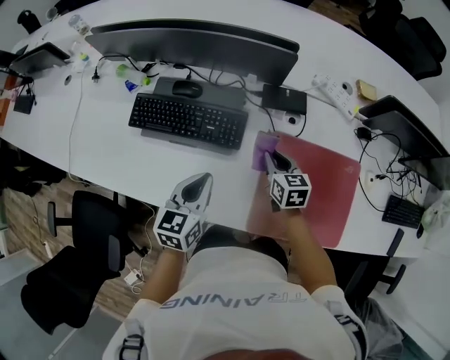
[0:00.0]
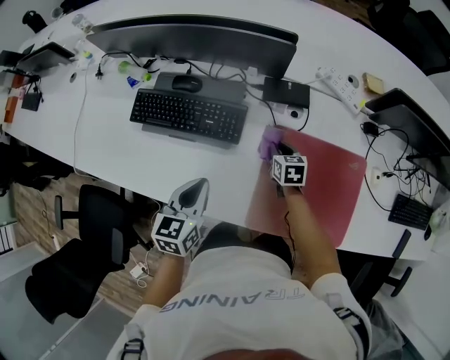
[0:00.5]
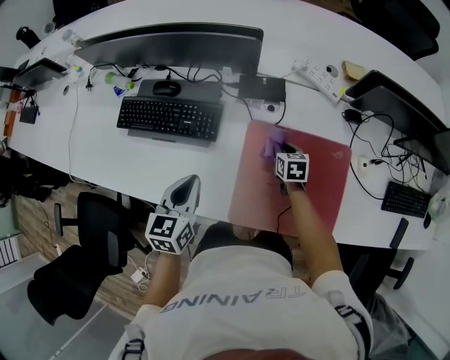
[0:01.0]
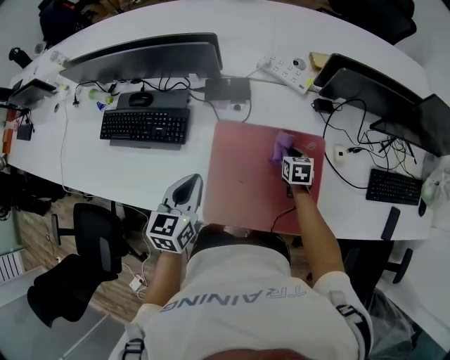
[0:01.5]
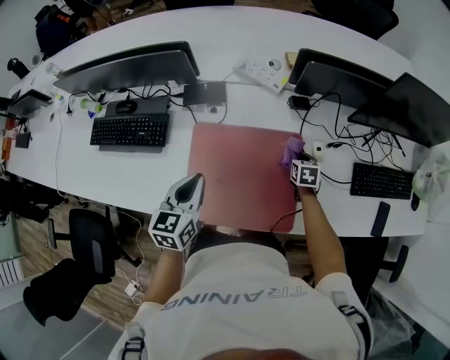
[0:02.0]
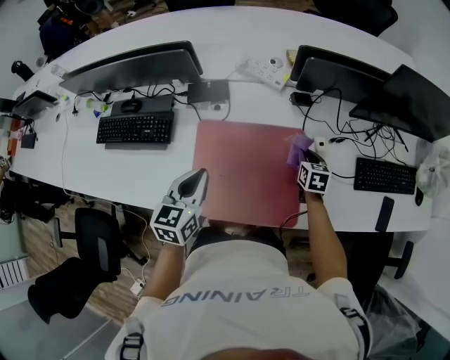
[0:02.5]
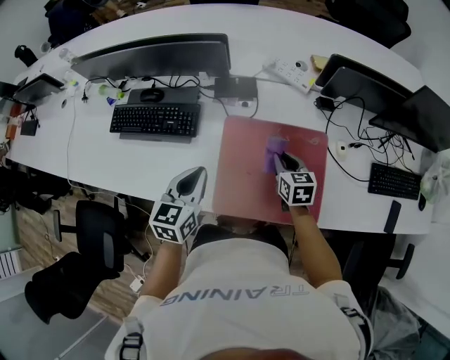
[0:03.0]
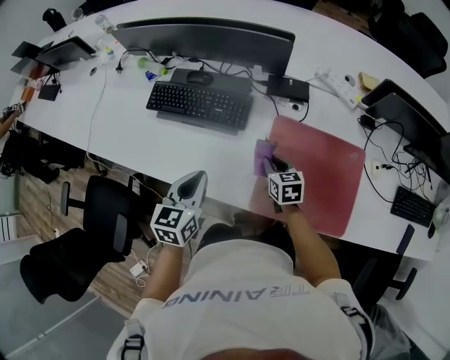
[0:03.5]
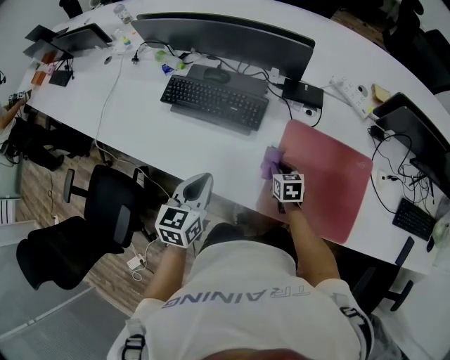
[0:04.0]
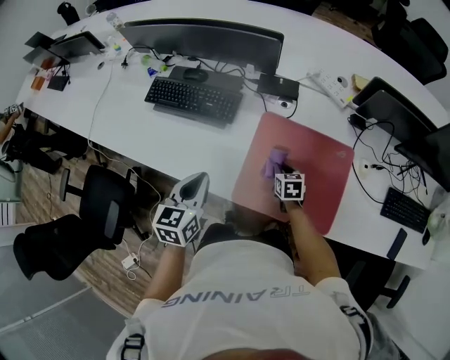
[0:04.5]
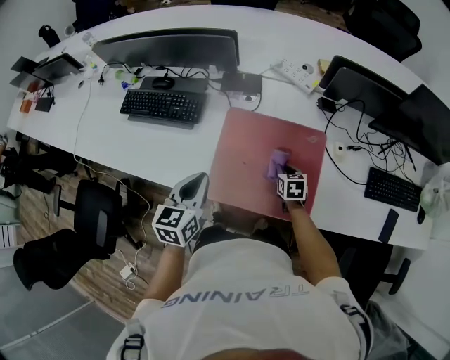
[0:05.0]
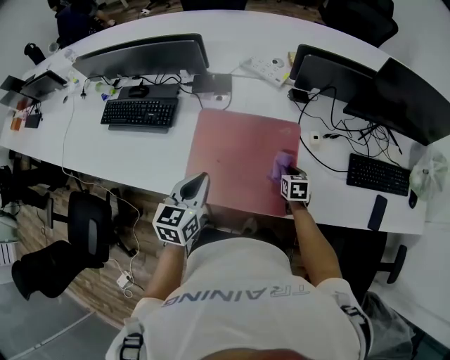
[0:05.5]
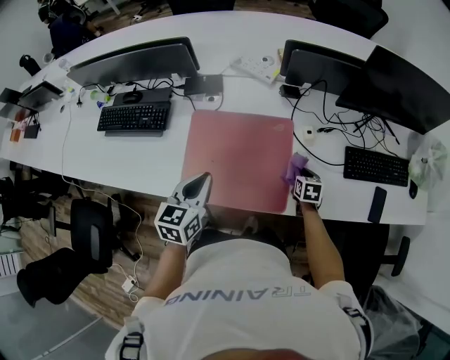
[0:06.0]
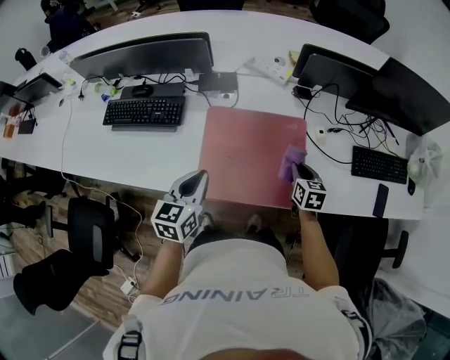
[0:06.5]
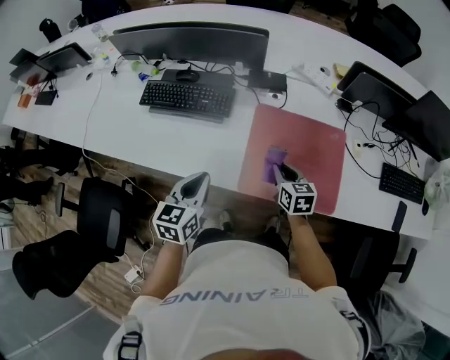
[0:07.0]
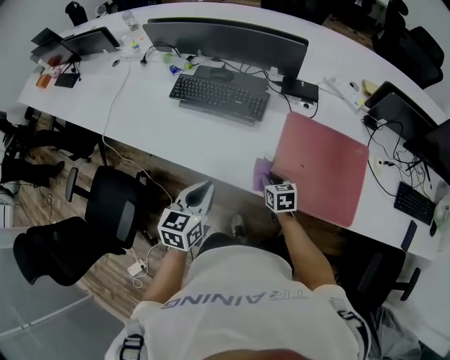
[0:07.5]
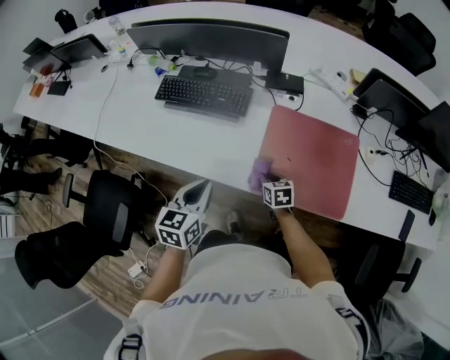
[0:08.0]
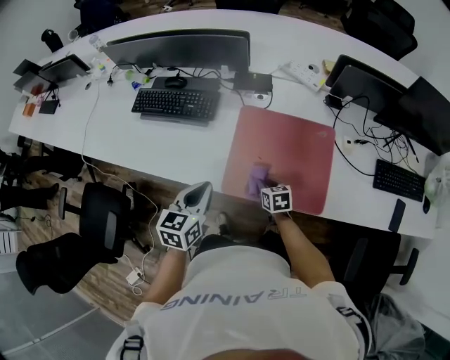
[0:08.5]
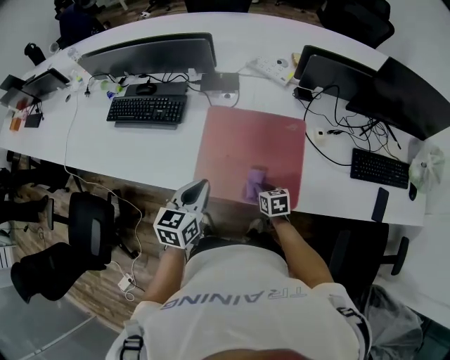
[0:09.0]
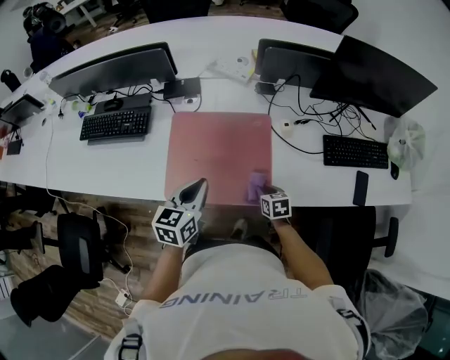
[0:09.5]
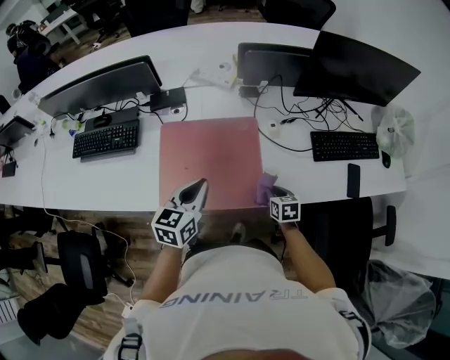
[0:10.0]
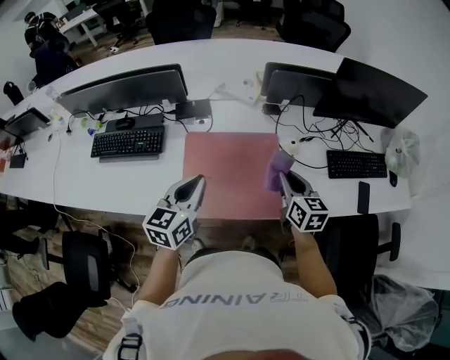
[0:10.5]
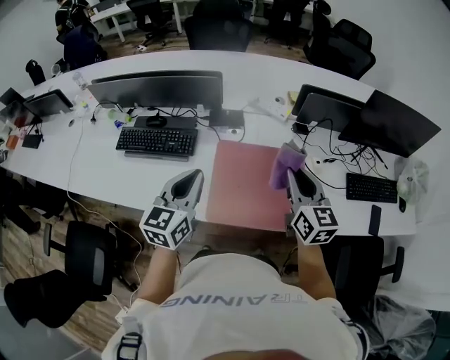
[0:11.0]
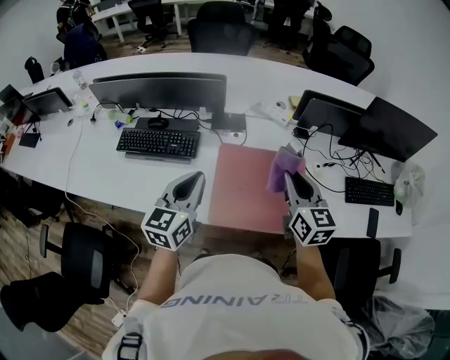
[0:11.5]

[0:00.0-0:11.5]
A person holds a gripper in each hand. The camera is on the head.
0:00.0 to 0:02.0: The left gripper goes some 25 cm to the right; the right gripper moves to the right, approximately 40 cm, and changes its angle by some 20 degrees.
0:02.0 to 0:04.0: The grippers both shift to the left by some 35 cm. The right gripper rotates about 20 degrees.
0:04.0 to 0:06.0: The grippers both shift to the right by some 40 cm. The right gripper swivels about 30 degrees.
0:06.0 to 0:07.5: The two grippers go approximately 40 cm to the left. The right gripper rotates approximately 30 degrees.
0:07.5 to 0:09.5: The grippers both shift to the right by roughly 40 cm.
0:09.5 to 0:11.5: The right gripper shifts some 40 cm upward and to the left, and angles its fingers upward, by roughly 40 degrees. The left gripper heads to the left and upward, covering about 25 cm.

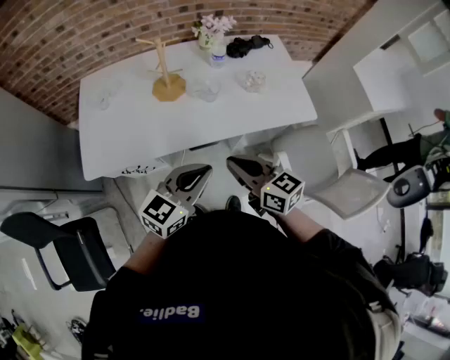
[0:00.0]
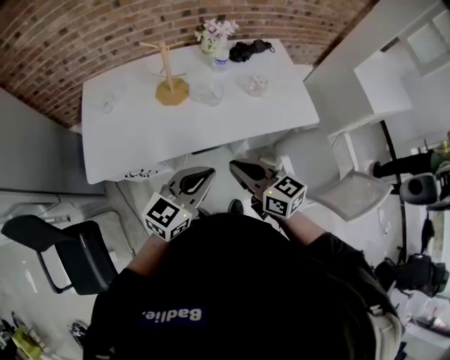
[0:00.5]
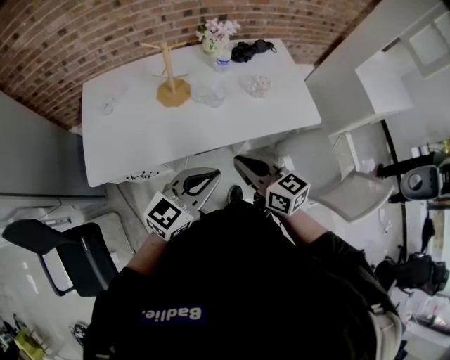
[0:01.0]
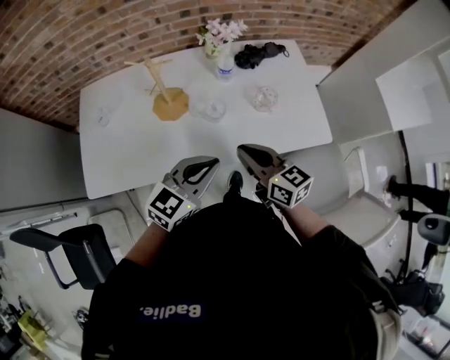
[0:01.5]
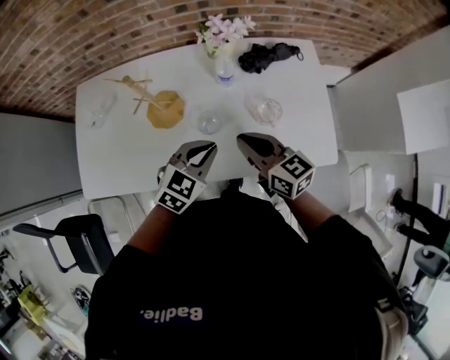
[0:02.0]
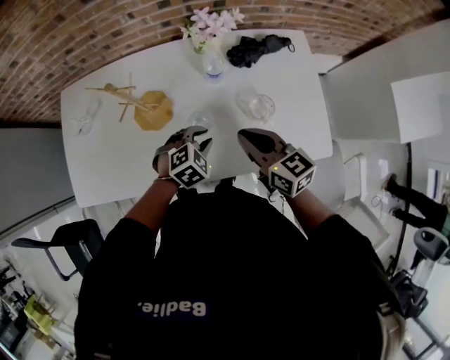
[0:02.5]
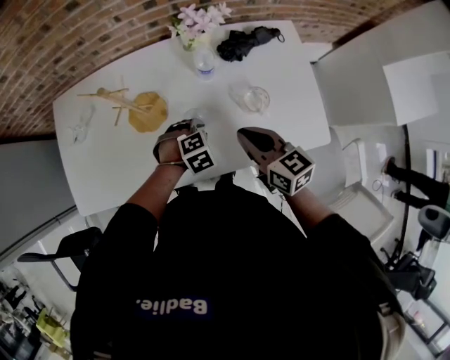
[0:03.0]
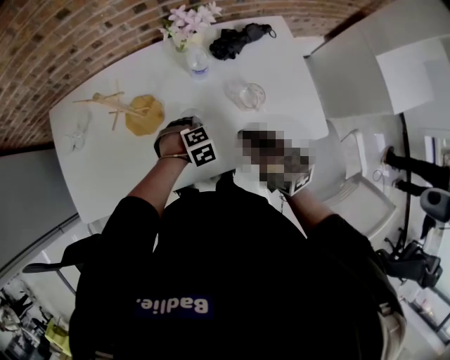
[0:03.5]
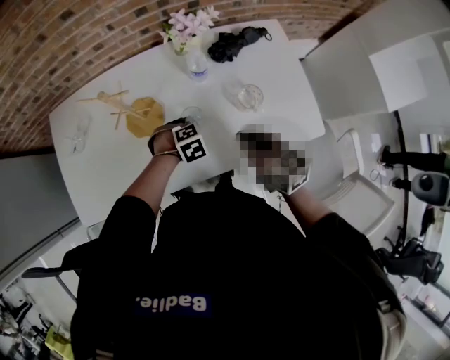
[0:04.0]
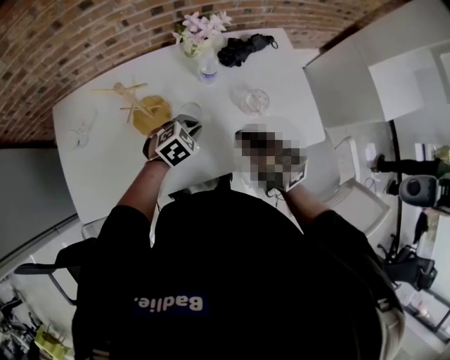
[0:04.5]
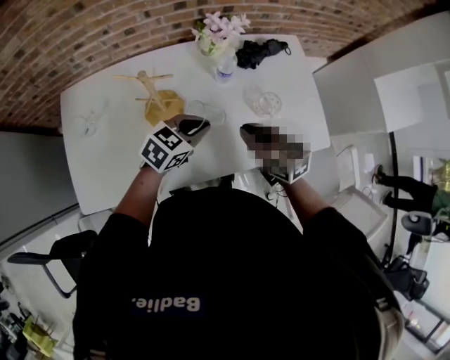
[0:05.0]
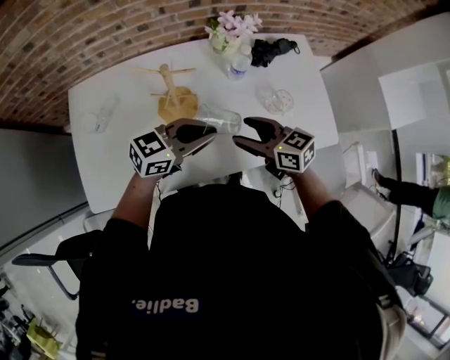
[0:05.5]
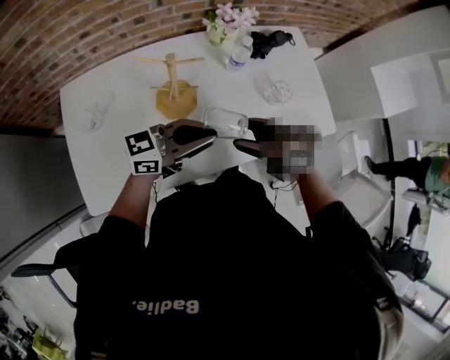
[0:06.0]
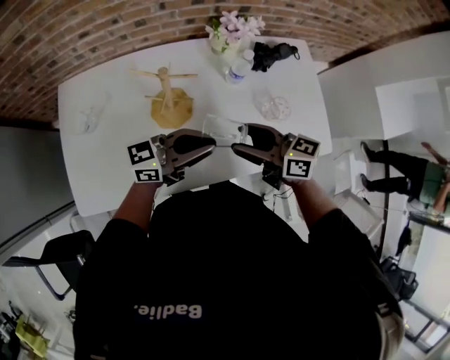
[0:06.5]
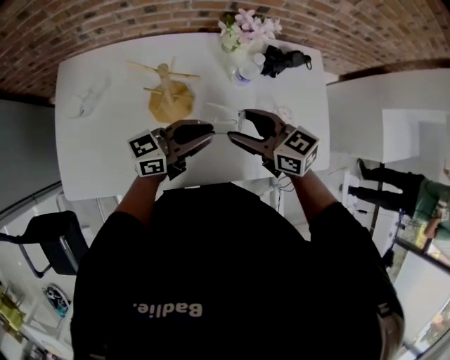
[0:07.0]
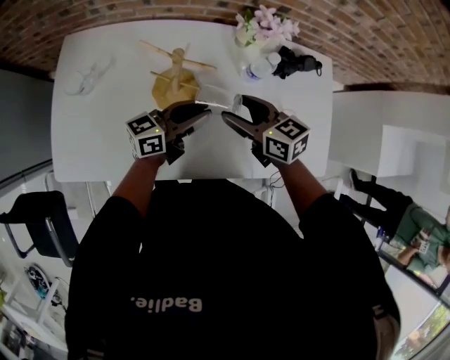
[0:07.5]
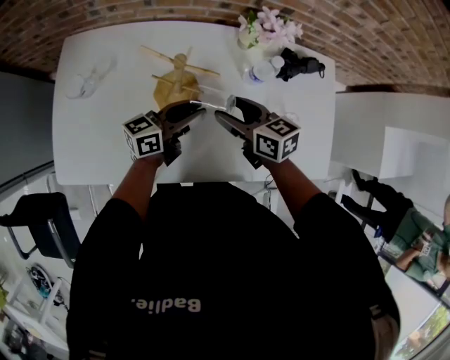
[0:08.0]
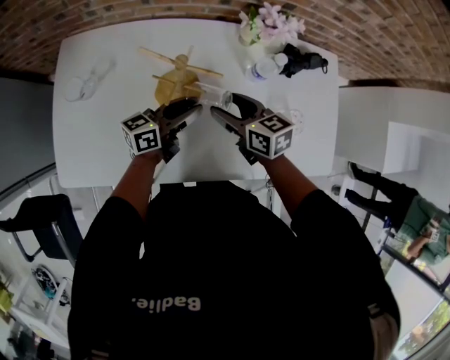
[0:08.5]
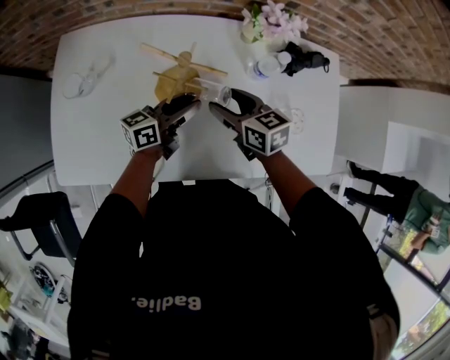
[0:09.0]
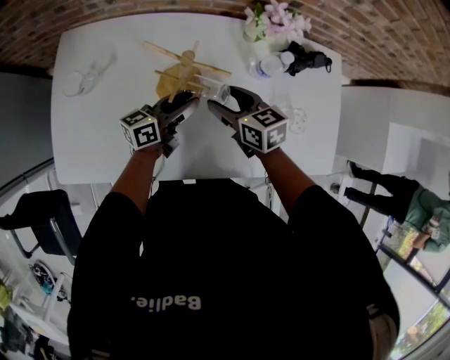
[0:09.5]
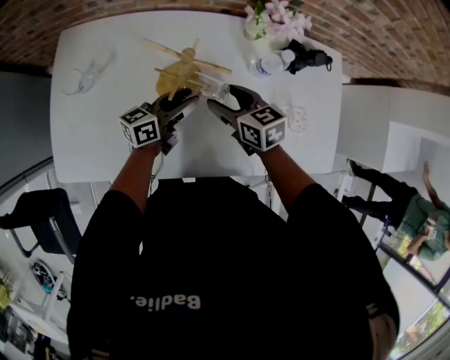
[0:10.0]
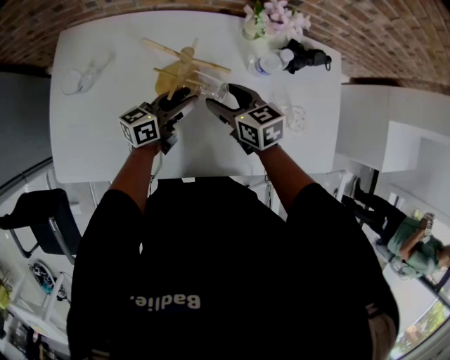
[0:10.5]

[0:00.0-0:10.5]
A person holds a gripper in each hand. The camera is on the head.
0:00.0 to 0:02.0: The two grippers go some 30 cm forward. The left gripper rotates roughly 30 degrees.
0:02.0 to 0:04.0: The left gripper moves downward, roughly 15 cm, and points its fingers roughly 40 degrees further downward.
0:04.0 to 0:06.5: The left gripper shifts some 25 cm upward, and tilts its fingers some 90 degrees upward; the right gripper moves approximately 15 cm, swivels about 30 degrees, and opens.
0:06.5 to 0:08.5: The right gripper moves about 15 cm. The left gripper shifts approximately 15 cm downward, rotates about 40 degrees, and opens.
0:08.5 to 0:10.5: The grippers make only small movements.

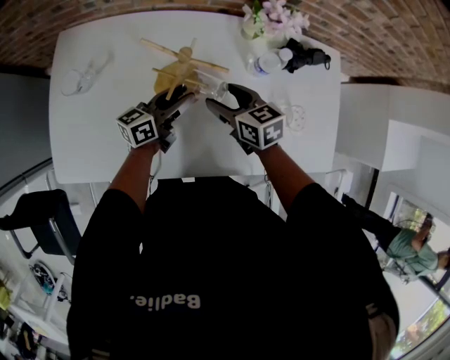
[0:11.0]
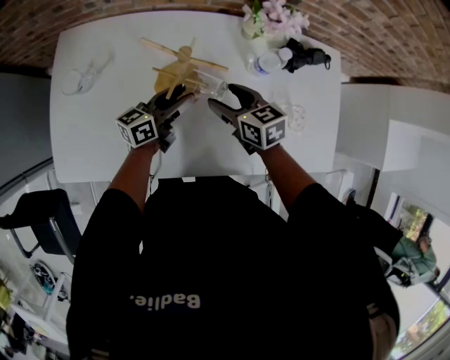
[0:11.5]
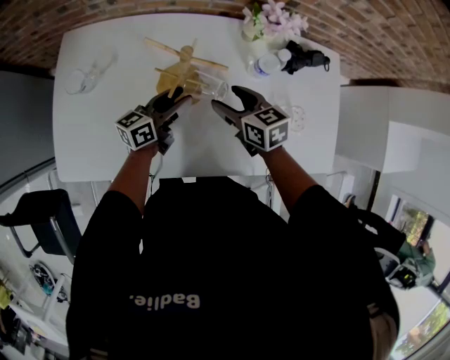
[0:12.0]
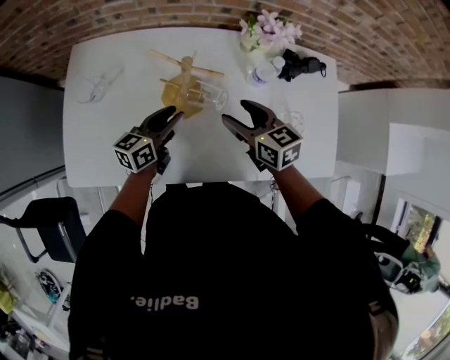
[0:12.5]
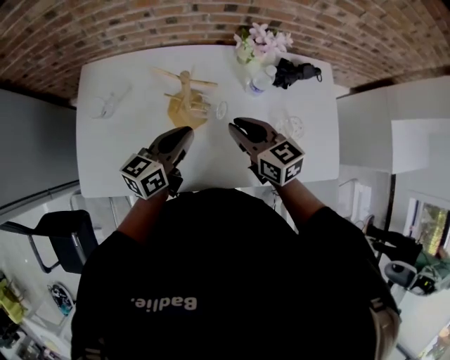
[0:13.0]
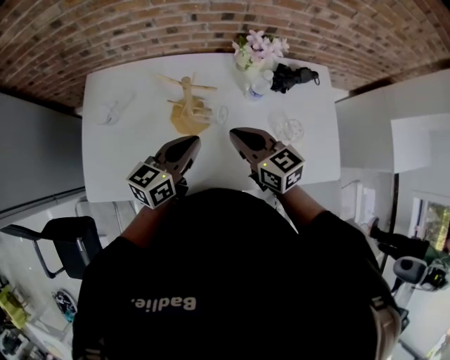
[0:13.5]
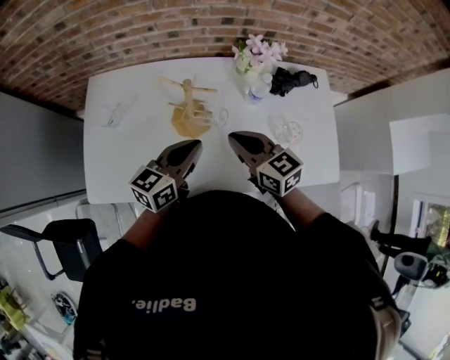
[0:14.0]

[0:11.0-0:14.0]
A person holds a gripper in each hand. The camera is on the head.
0:11.0 to 0:12.5: The left gripper changes place by about 5 cm, while the right gripper moves upward, approximately 5 cm.
0:12.5 to 0:14.0: The right gripper heads upward and backward, covering roughly 10 cm, and closes its fingers. The left gripper heads upward and backward, covering about 15 cm, and closes its fingers.

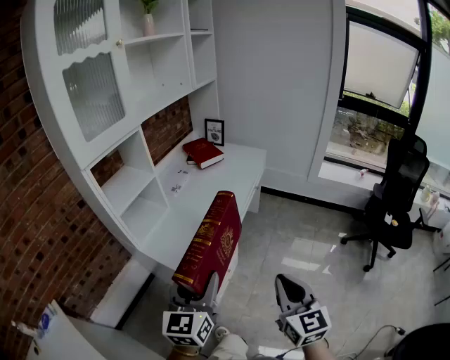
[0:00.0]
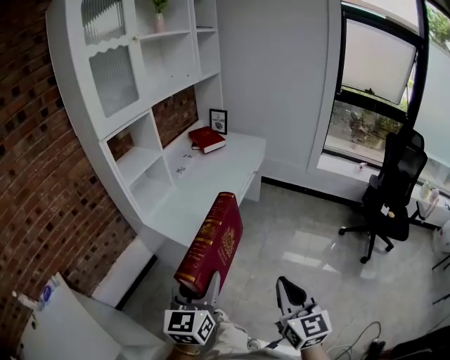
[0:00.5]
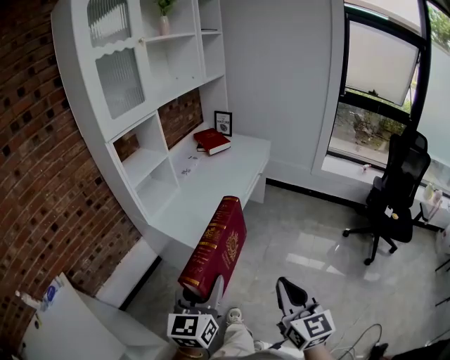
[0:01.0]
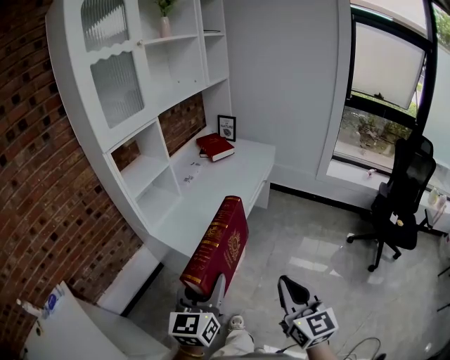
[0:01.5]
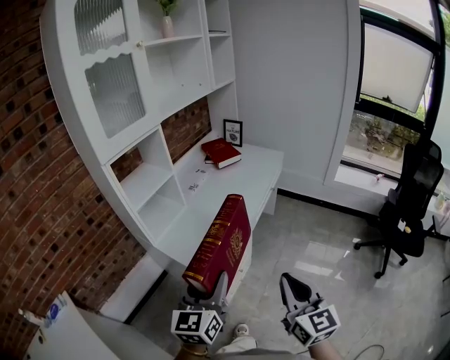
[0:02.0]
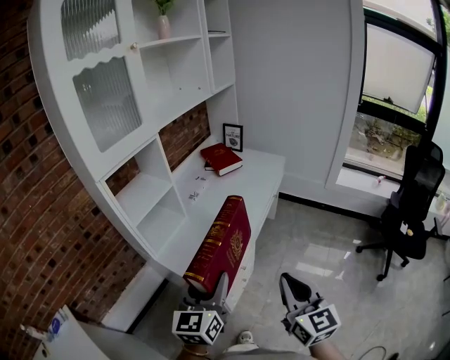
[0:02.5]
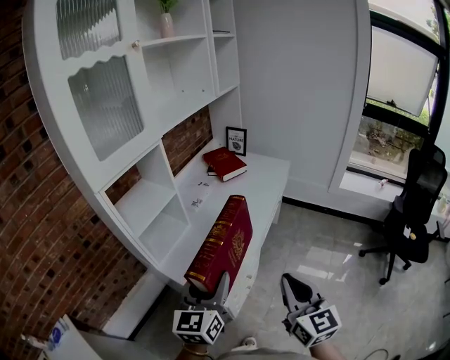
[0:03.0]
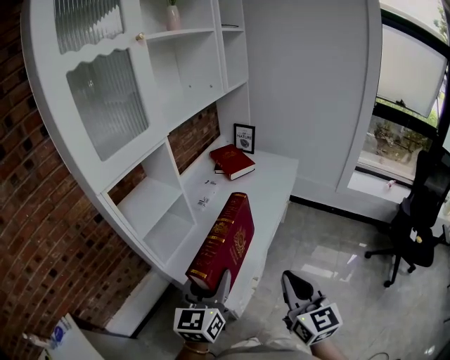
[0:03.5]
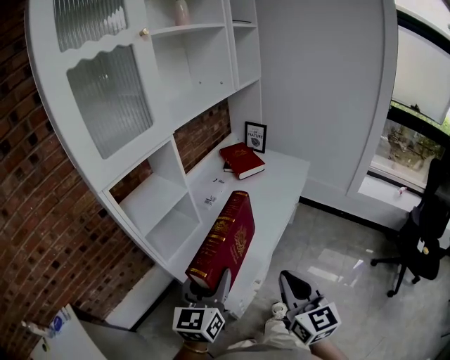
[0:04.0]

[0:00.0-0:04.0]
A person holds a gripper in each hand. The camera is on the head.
0:00.0 to 0:02.0: The right gripper goes backward and returns, some 15 cm each way. Meanwhile the left gripper reaches some 15 cm backward, then returns.
0:02.0 to 0:04.0: Both grippers travel together forward, roughly 15 cm.
